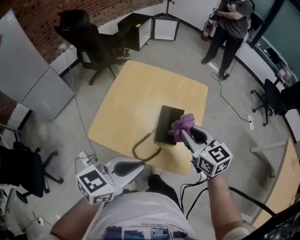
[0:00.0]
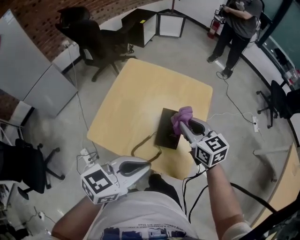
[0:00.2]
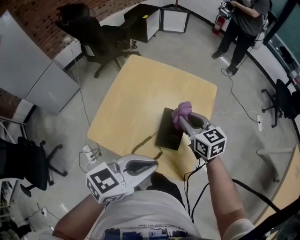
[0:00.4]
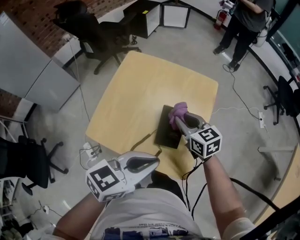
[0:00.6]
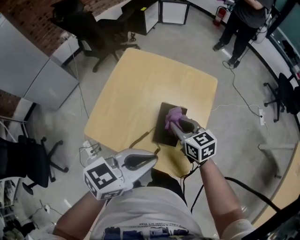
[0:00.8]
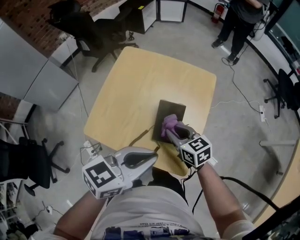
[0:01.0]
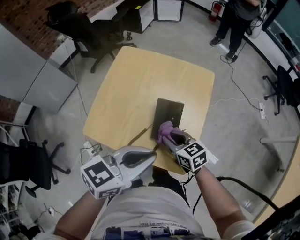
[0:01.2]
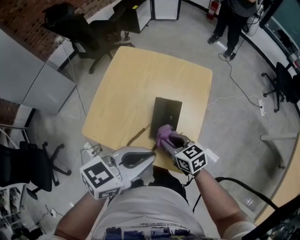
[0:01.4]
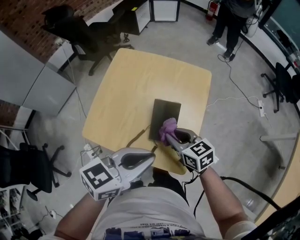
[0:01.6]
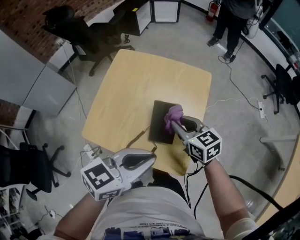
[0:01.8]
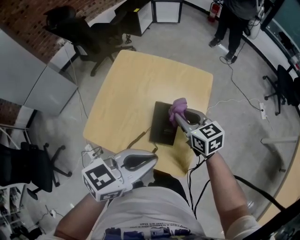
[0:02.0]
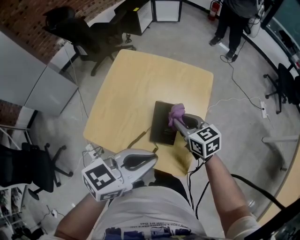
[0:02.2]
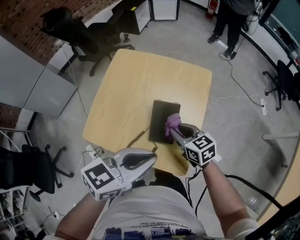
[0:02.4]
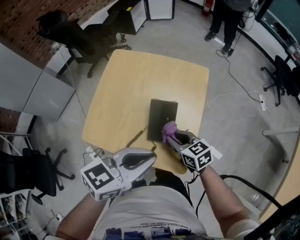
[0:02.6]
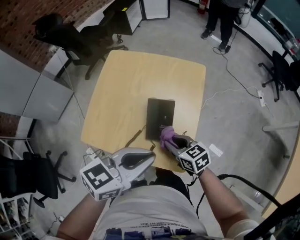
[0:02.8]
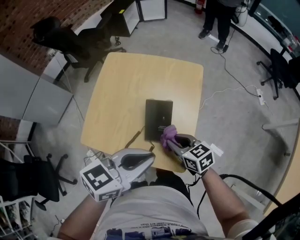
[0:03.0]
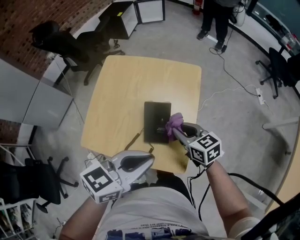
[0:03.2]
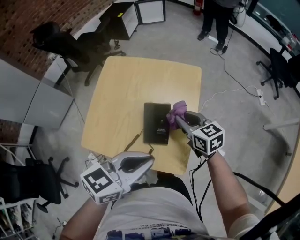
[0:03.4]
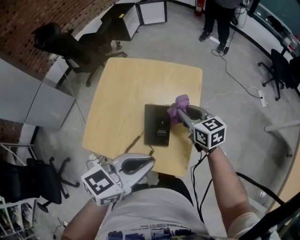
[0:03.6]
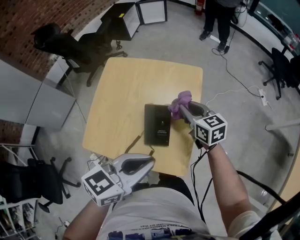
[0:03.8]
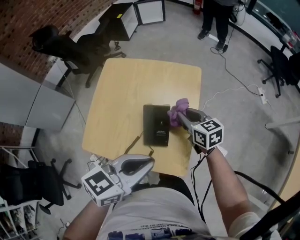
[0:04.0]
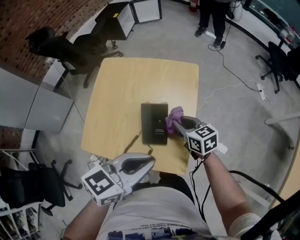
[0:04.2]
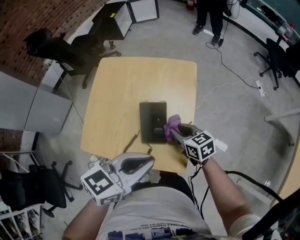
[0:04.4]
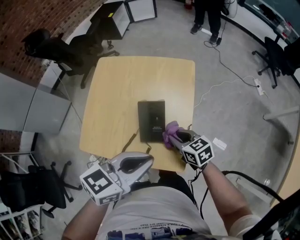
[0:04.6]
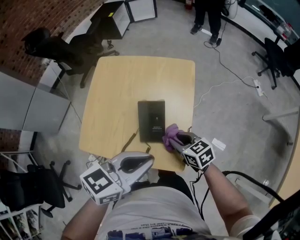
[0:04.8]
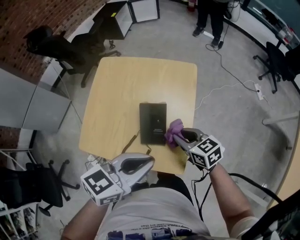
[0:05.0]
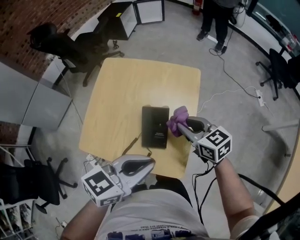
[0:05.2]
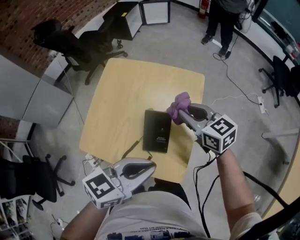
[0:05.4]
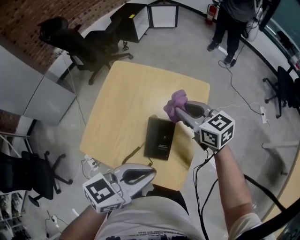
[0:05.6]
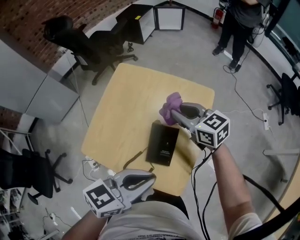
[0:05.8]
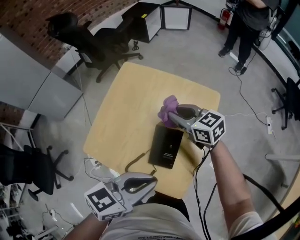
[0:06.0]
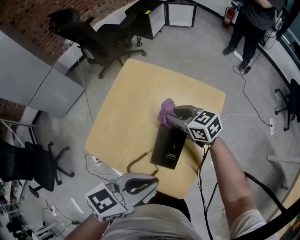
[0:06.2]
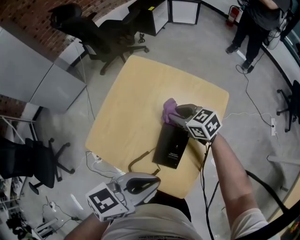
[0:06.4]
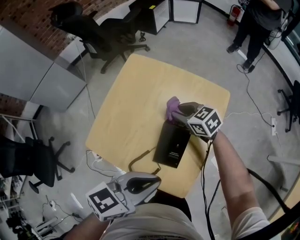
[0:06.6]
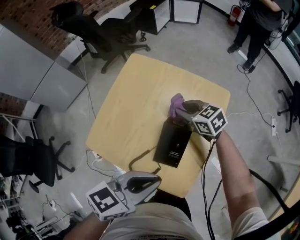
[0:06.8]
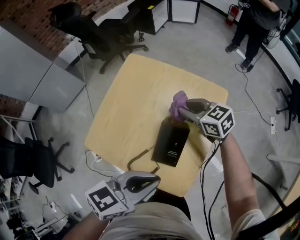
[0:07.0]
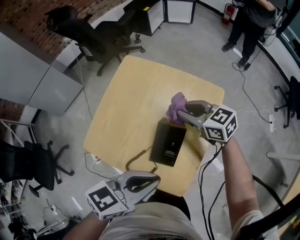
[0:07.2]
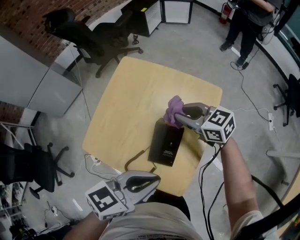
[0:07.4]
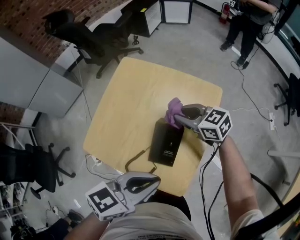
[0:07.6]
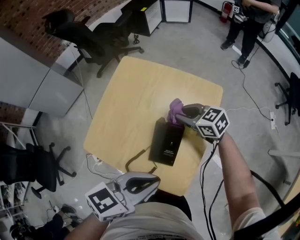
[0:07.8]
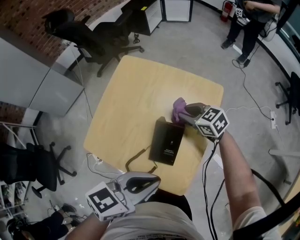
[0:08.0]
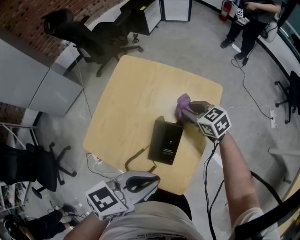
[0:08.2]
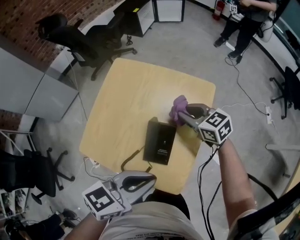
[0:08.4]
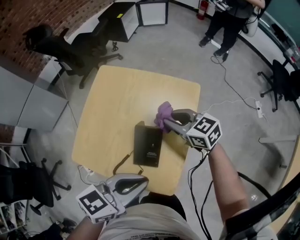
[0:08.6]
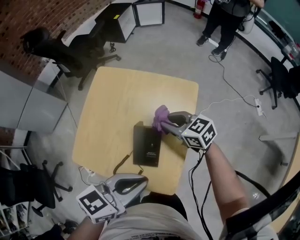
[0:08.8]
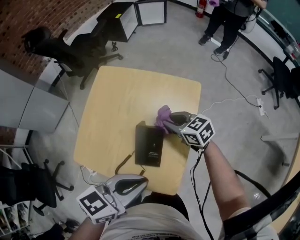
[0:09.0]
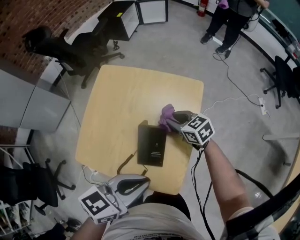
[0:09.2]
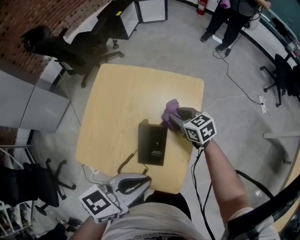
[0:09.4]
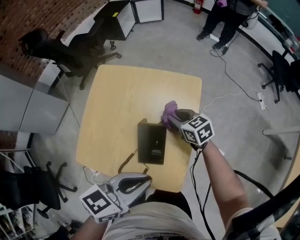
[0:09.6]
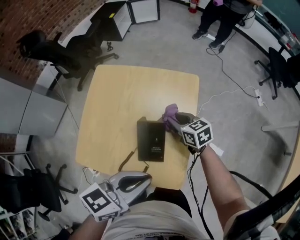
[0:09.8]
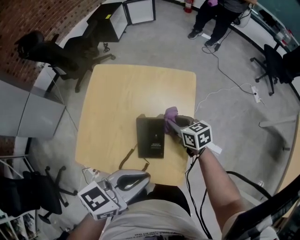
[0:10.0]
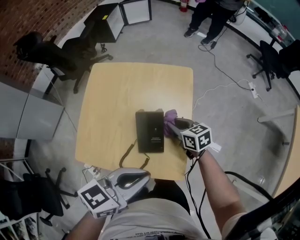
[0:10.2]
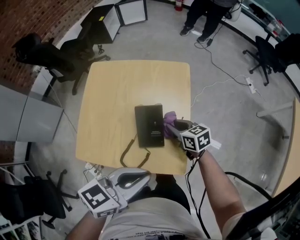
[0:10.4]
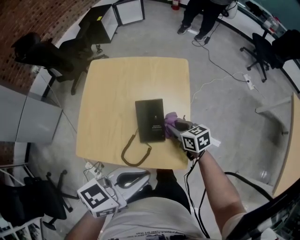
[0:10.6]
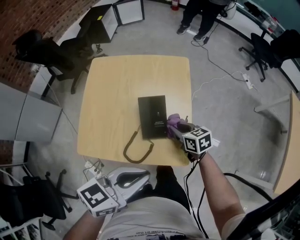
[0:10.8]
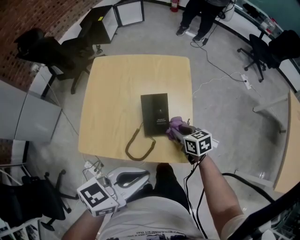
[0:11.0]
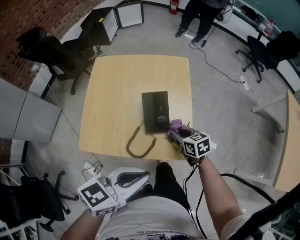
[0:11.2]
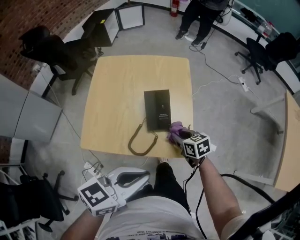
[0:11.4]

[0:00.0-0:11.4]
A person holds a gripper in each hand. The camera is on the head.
0.0 to 1.4 s: The right gripper travels downward by approximately 15 cm, and changes its angle by roughly 20 degrees. The left gripper goes approximately 10 cm to the right and forward.
1.4 to 2.8 s: The right gripper goes forward and returns, some 10 cm each way.
2.8 to 4.2 s: The right gripper heads forward, covering roughly 10 cm.
4.2 to 5.6 s: The right gripper moves upward and forward, about 15 cm.
7.2 to 8.6 s: The right gripper moves about 10 cm downward and comes back.
8.6 to 10.0 s: The right gripper moves downward, about 10 cm, and turns by roughly 30 degrees.
10.0 to 11.4 s: The two grippers go roughly 15 cm backward.

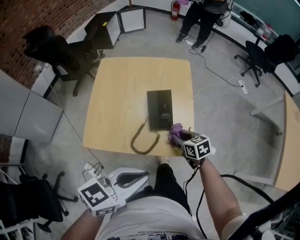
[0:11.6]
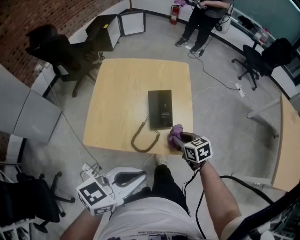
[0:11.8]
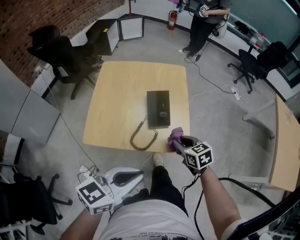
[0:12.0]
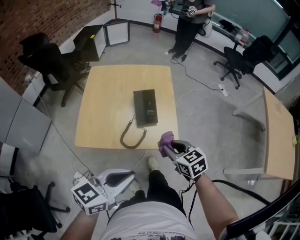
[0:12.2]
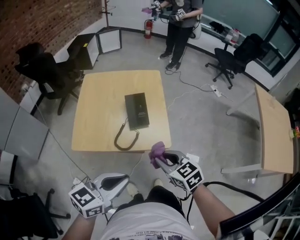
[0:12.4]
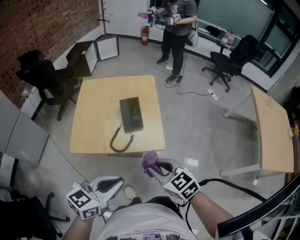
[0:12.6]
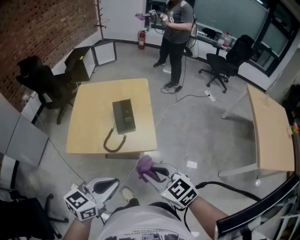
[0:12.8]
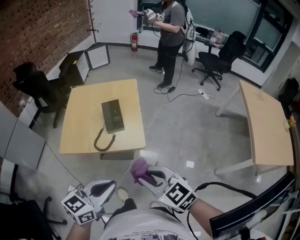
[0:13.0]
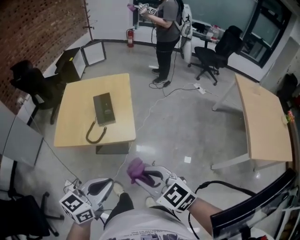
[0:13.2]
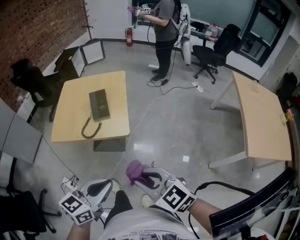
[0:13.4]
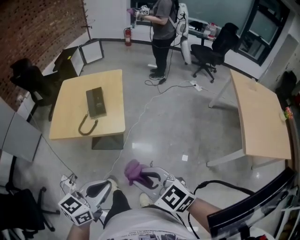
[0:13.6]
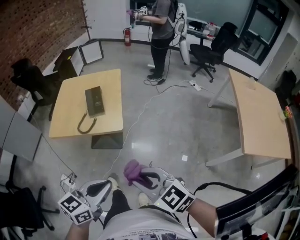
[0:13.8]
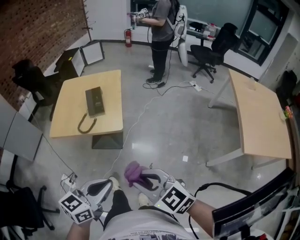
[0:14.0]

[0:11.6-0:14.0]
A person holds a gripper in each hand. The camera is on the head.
11.6 to 12.8 s: The left gripper is displaced backward by roughly 10 cm; the right gripper travels backward and upward by some 30 cm, and changes its angle by about 30 degrees.
12.8 to 14.0 s: The left gripper heads to the right and backward, covering about 20 cm; the right gripper heads backward and to the right, covering approximately 20 cm.

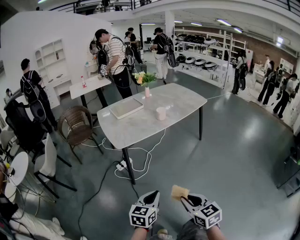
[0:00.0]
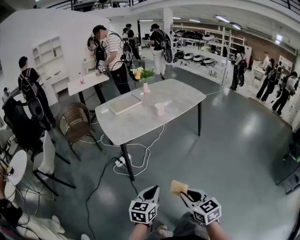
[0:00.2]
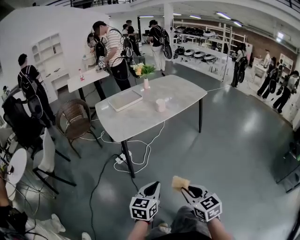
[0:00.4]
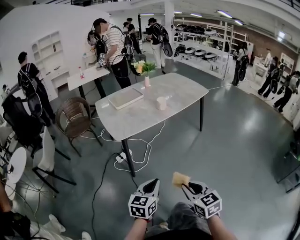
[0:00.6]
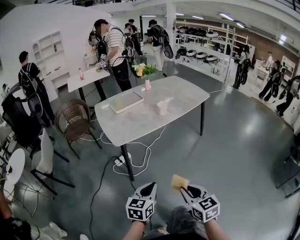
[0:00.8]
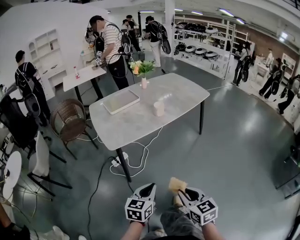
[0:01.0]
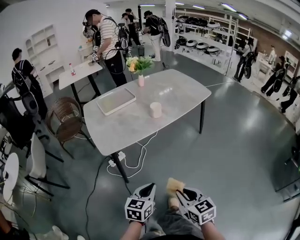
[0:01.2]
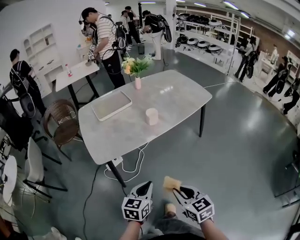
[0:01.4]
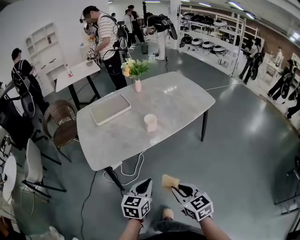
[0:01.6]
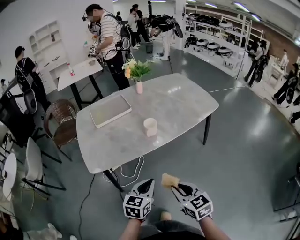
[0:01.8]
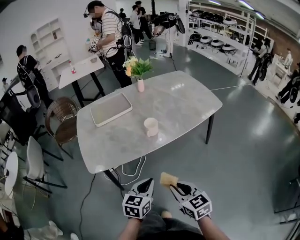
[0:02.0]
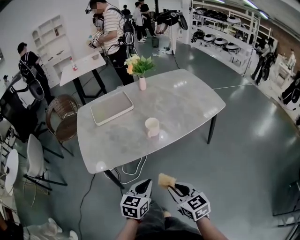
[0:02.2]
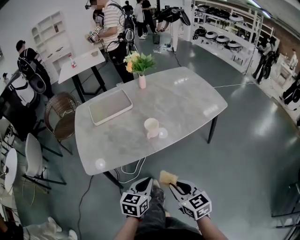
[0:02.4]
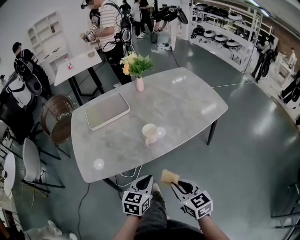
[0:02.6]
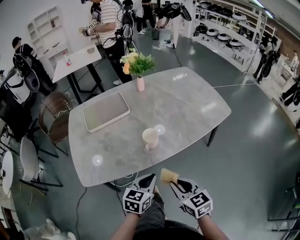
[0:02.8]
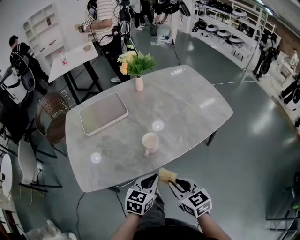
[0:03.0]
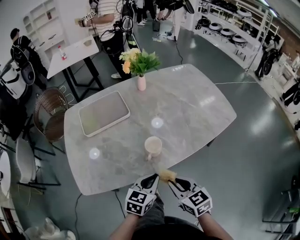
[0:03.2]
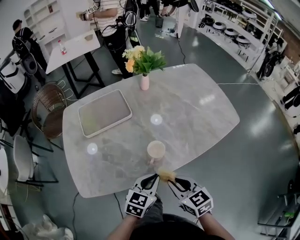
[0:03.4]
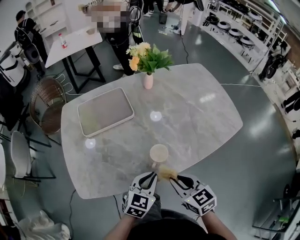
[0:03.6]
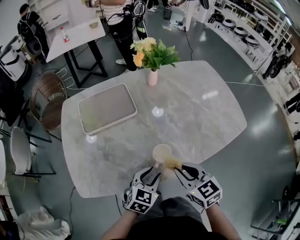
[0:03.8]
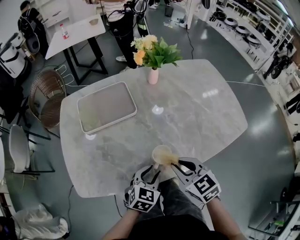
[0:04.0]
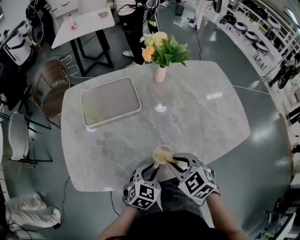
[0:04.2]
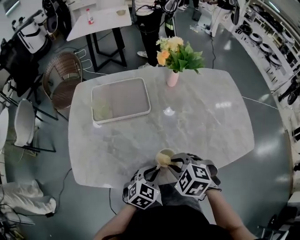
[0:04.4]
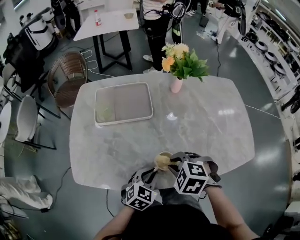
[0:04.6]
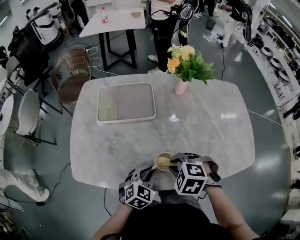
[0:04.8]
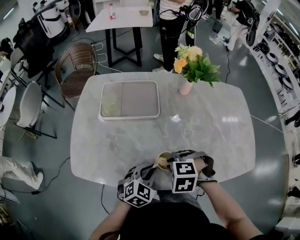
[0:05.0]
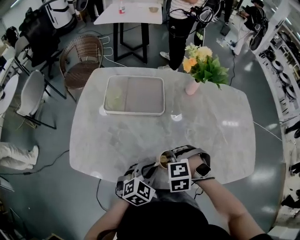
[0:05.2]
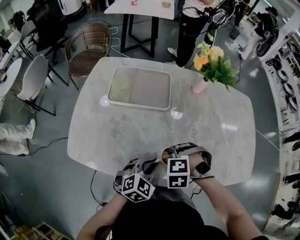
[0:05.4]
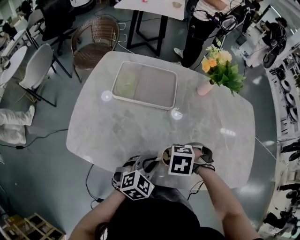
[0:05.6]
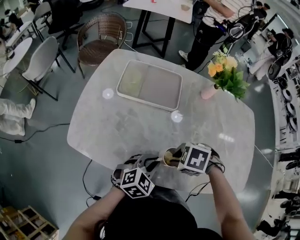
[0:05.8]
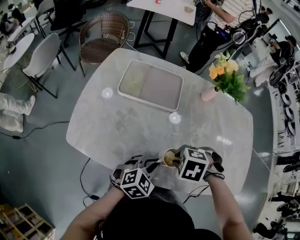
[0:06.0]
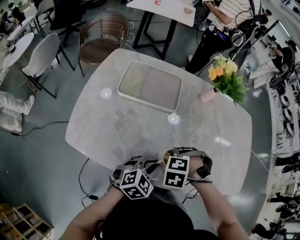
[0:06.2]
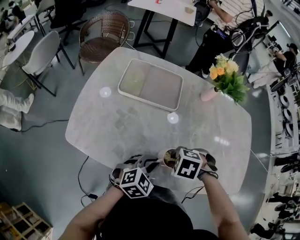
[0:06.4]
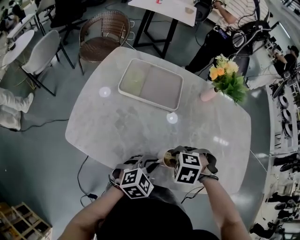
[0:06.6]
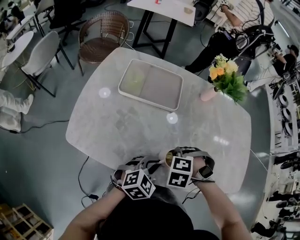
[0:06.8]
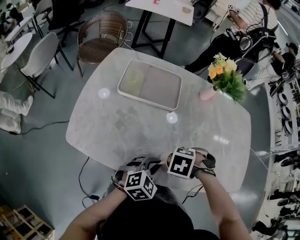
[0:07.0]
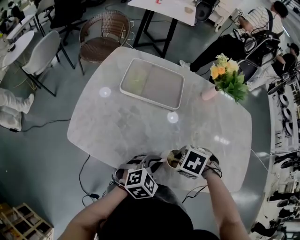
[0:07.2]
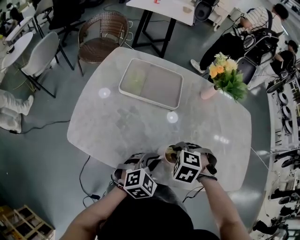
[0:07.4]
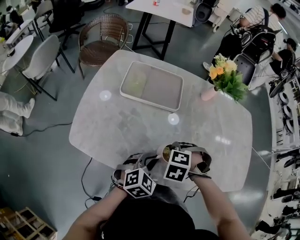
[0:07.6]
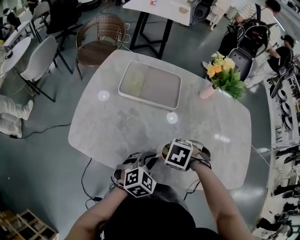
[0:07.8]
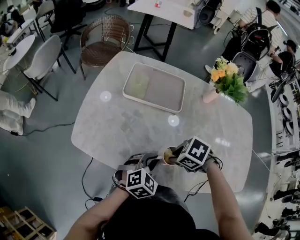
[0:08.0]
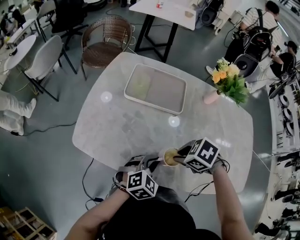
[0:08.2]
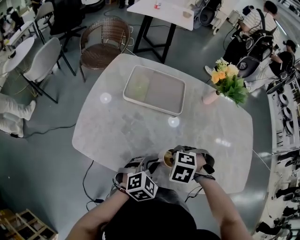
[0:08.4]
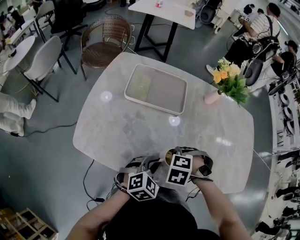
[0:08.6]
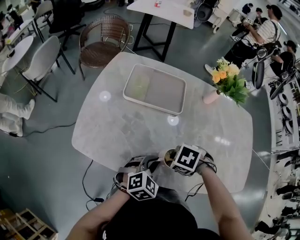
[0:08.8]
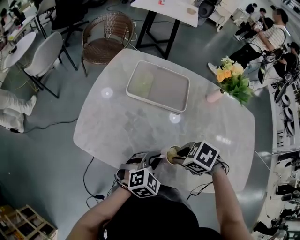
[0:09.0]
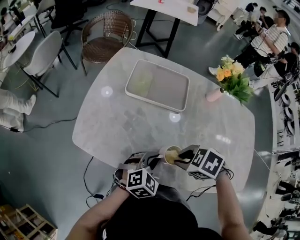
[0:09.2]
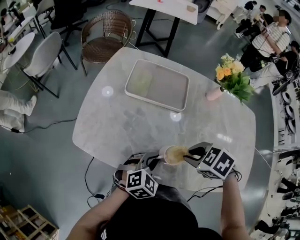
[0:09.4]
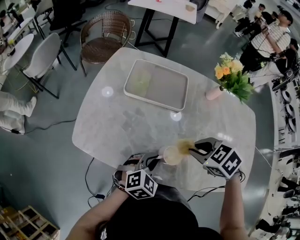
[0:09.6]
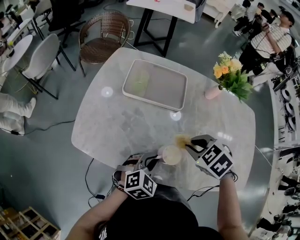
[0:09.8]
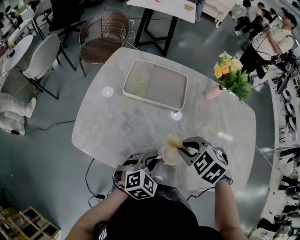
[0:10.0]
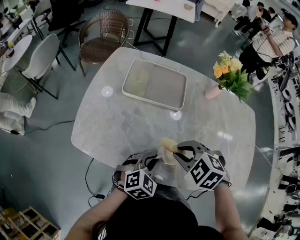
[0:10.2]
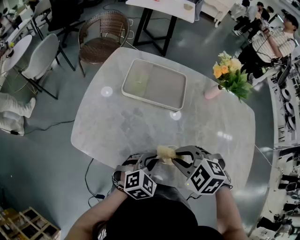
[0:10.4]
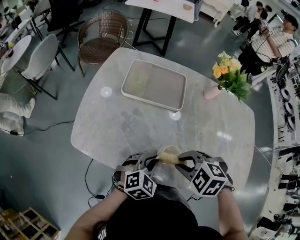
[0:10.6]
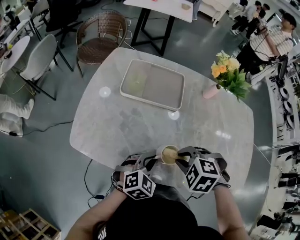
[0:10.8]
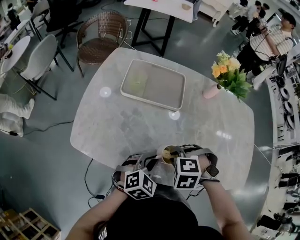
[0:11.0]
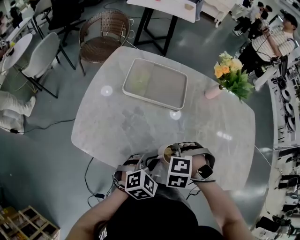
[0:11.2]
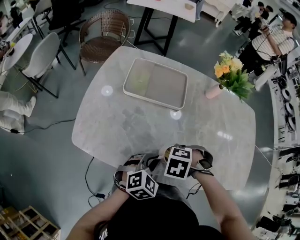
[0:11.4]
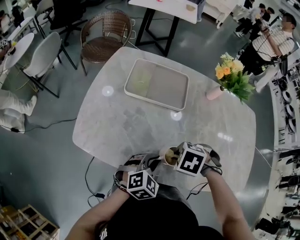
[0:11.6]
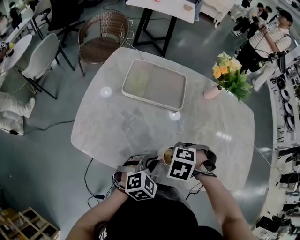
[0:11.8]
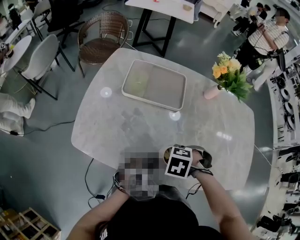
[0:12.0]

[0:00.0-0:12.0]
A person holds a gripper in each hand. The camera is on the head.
0.0 to 1.6 s: The two grippers go roughly 35 cm forward.
1.6 to 3.0 s: Both grippers travel together forward, roughly 25 cm.
3.0 to 4.4 s: Both grippers move forward, roughly 15 cm. The left gripper opens, then closes again. The right gripper points its fingers about 30 degrees further downward.
4.4 to 6.0 s: The right gripper changes its angle by roughly 40 degrees.
7.6 to 9.0 s: The right gripper swings up and down, about 5 cm each way, with 2 reversals, and swivels some 40 degrees.
9.0 to 10.4 s: The right gripper shifts about 5 cm upward, and rotates about 30 degrees.
10.4 to 12.0 s: The right gripper shifts about 10 cm downward, and swivels roughly 30 degrees.
